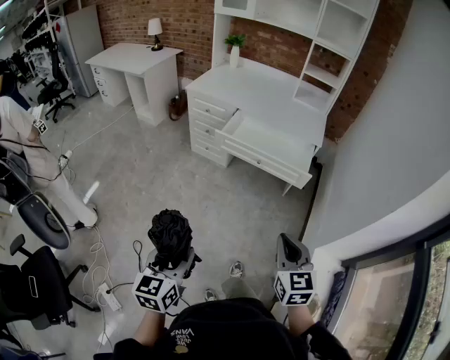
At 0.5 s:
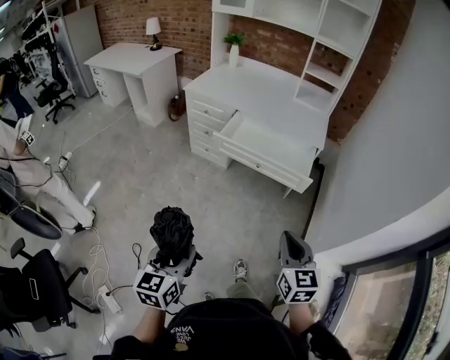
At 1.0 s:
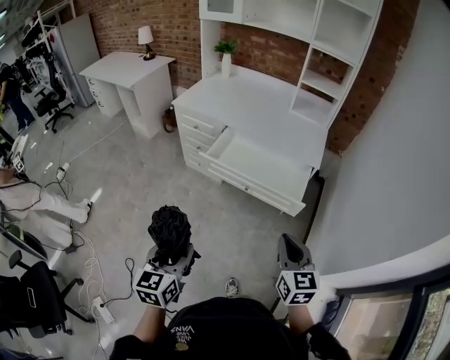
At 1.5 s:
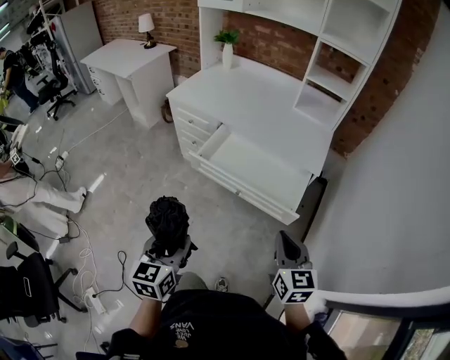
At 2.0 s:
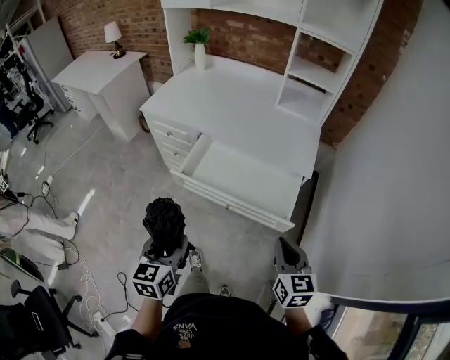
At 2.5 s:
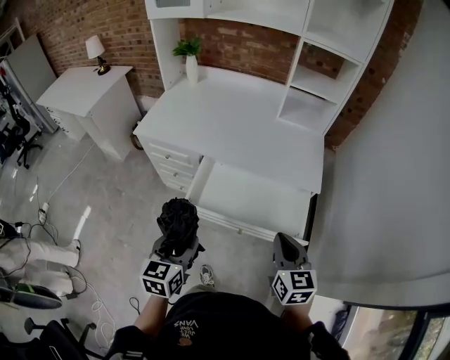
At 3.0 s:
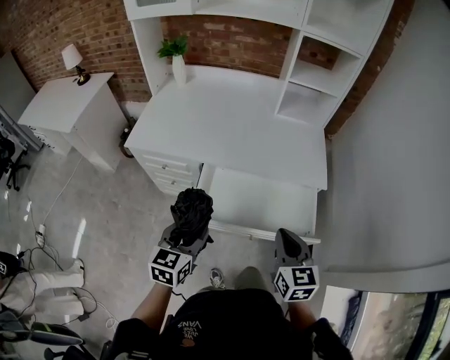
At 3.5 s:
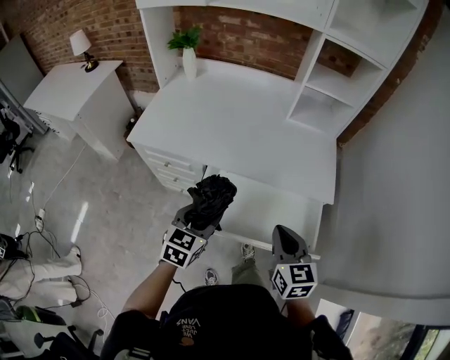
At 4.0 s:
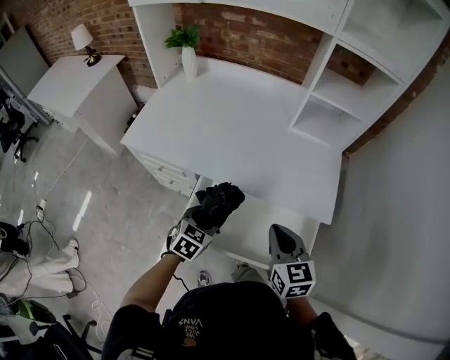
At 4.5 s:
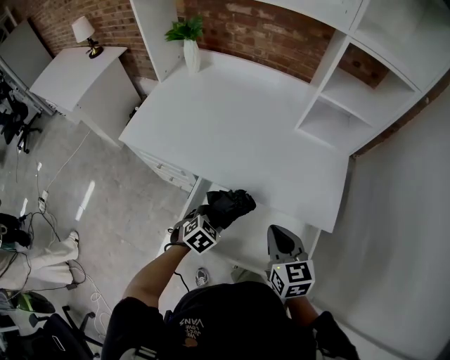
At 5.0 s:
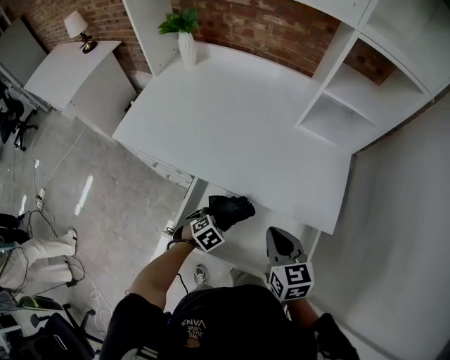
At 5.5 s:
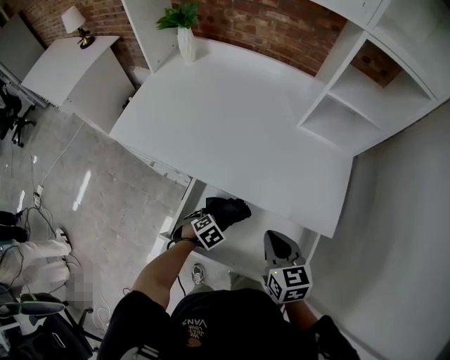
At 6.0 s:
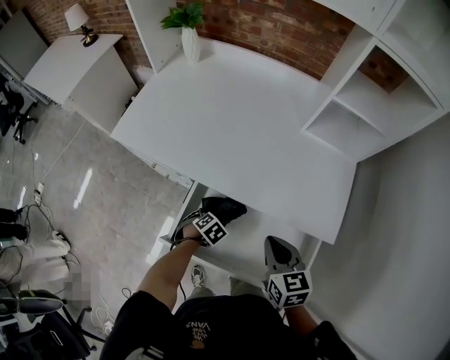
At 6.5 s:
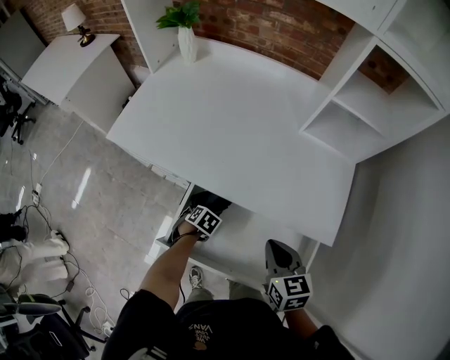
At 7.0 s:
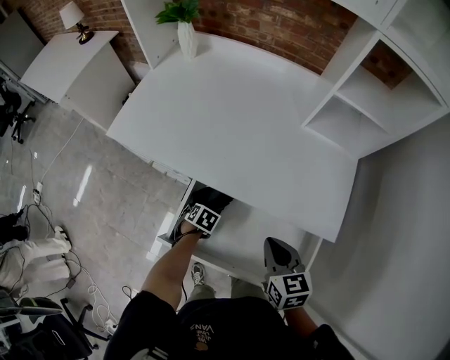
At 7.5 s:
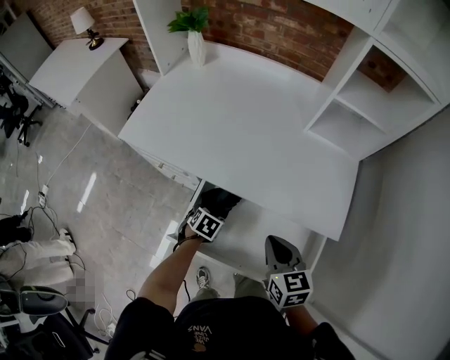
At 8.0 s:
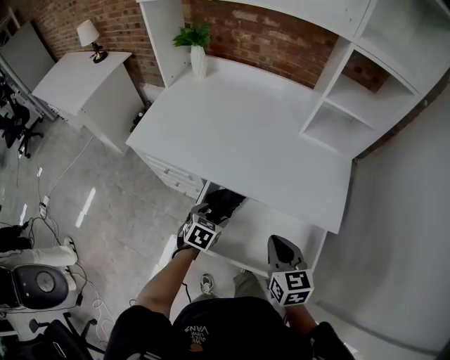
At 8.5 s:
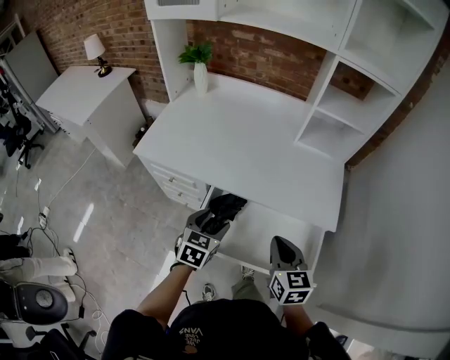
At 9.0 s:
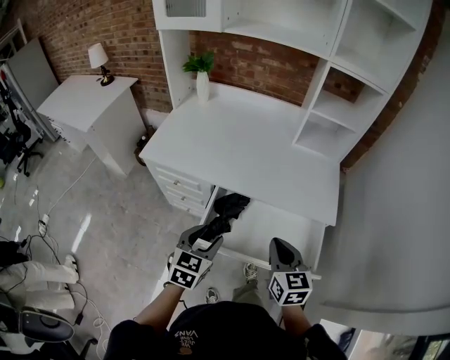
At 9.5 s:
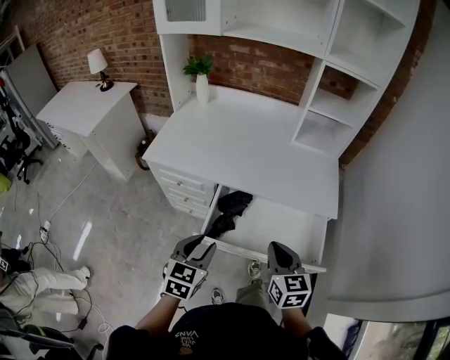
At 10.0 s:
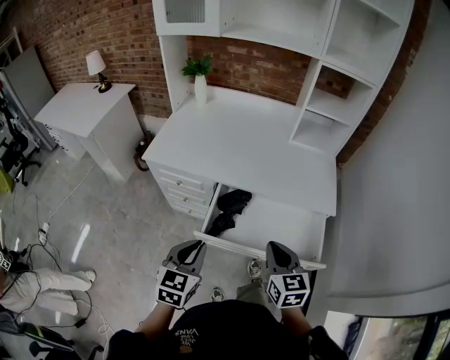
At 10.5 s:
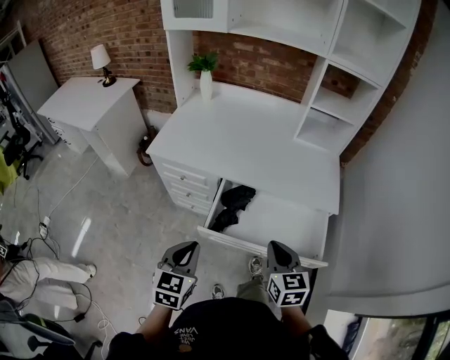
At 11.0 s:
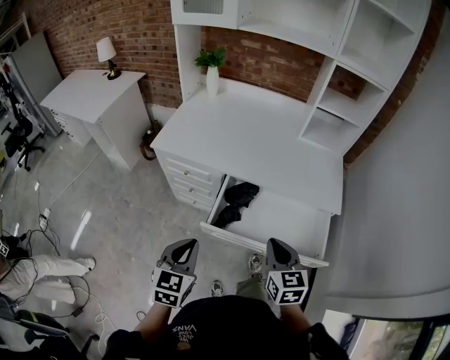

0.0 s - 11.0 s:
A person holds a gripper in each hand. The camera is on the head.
0.0 s - 2.0 s: The left gripper is displaced forward by about 40 cm. Meanwhile the right gripper shifts some 40 cm forward and to the right.
2.0 s - 3.5 s: The left gripper heads forward, covering approximately 30 cm, and swivels about 30 degrees; the right gripper shifts roughly 25 cm forward and to the left.
3.5 s - 5.5 s: The right gripper shifts by some 15 cm; the left gripper heads downward, covering approximately 25 cm, and tilts its fingers some 40 degrees downward.
5.5 s - 7.5 s: The left gripper shifts by roughly 5 cm, and changes its angle by some 30 degrees.
7.5 s - 9.0 s: The left gripper goes some 30 cm upward and backward, and points its fingers roughly 40 degrees further upward. The right gripper moves backward and upward, approximately 15 cm.
9.0 s - 11.0 s: The right gripper shifts roughly 10 cm backward and to the left; the left gripper travels backward and to the left by about 15 cm, and closes its fingers.

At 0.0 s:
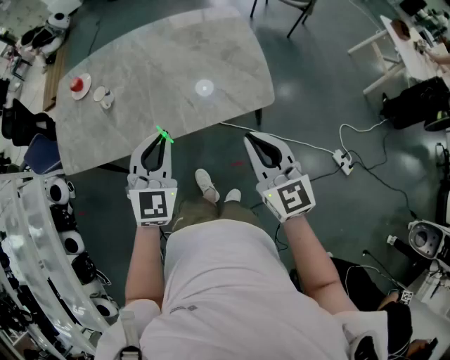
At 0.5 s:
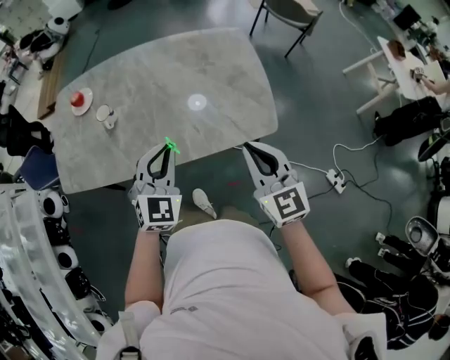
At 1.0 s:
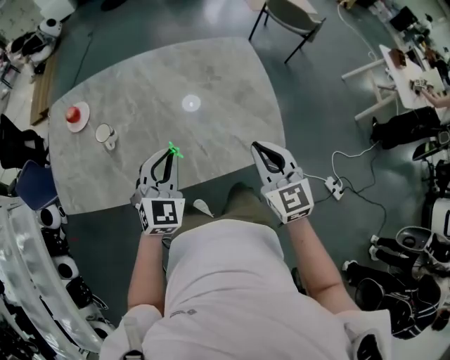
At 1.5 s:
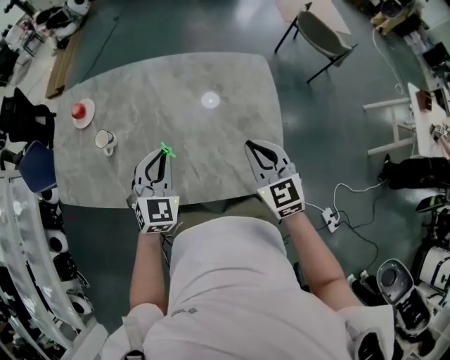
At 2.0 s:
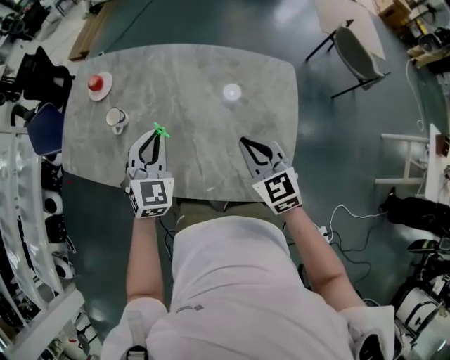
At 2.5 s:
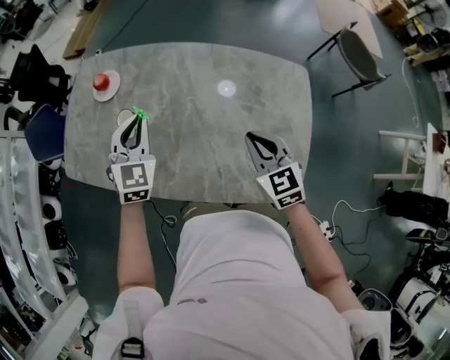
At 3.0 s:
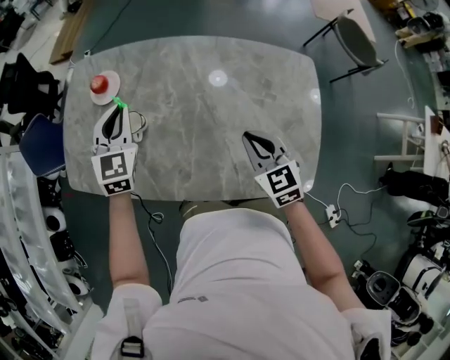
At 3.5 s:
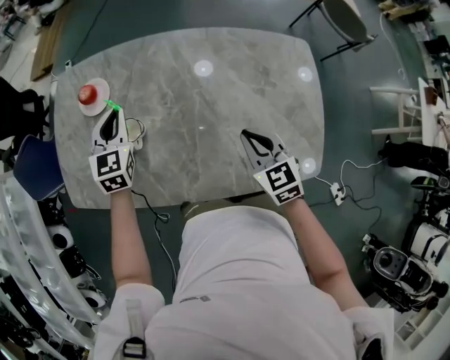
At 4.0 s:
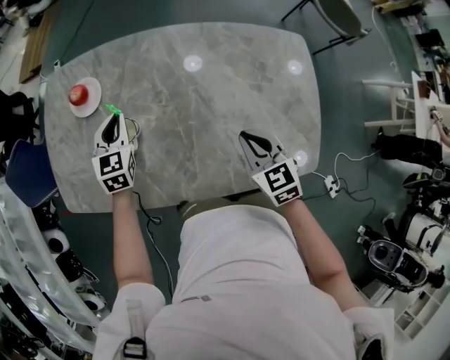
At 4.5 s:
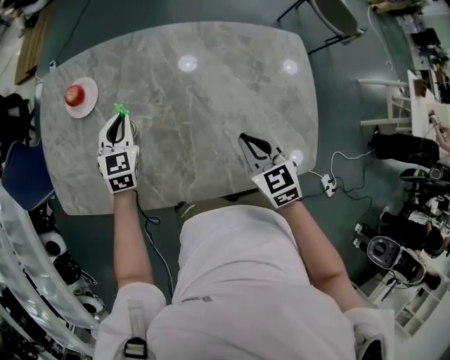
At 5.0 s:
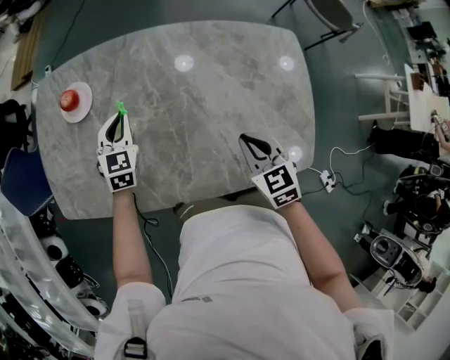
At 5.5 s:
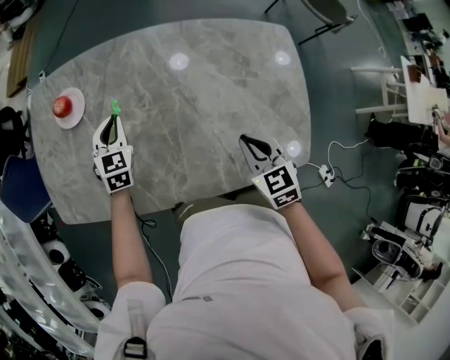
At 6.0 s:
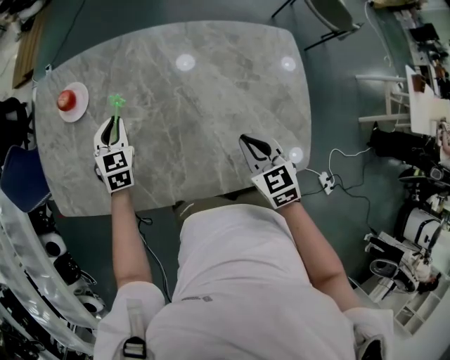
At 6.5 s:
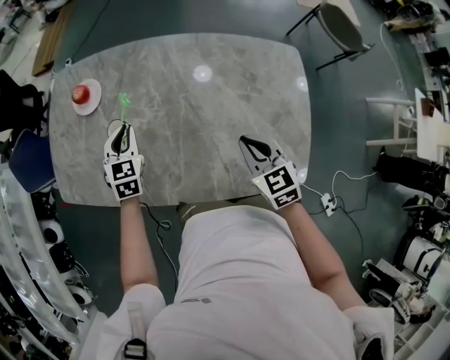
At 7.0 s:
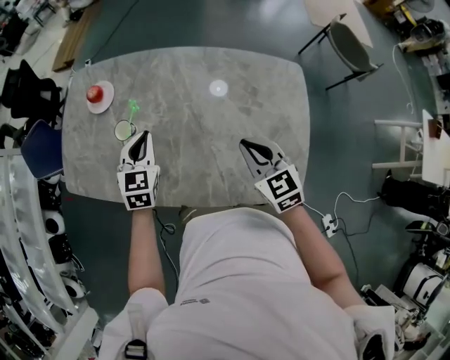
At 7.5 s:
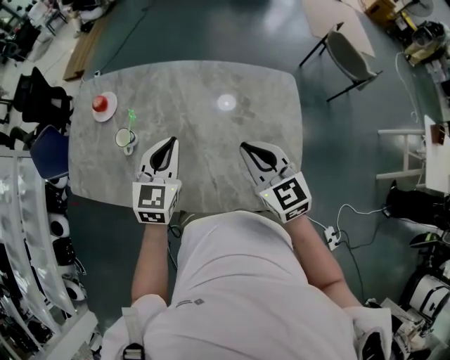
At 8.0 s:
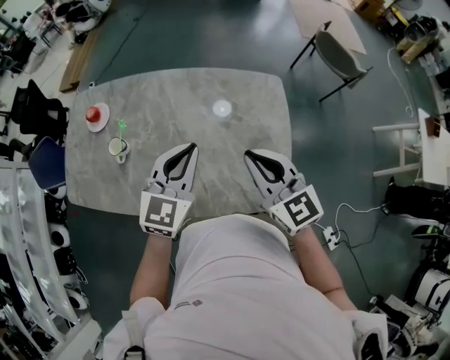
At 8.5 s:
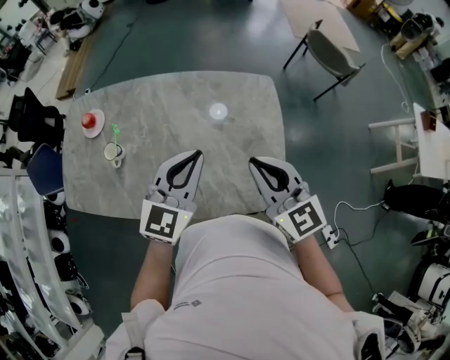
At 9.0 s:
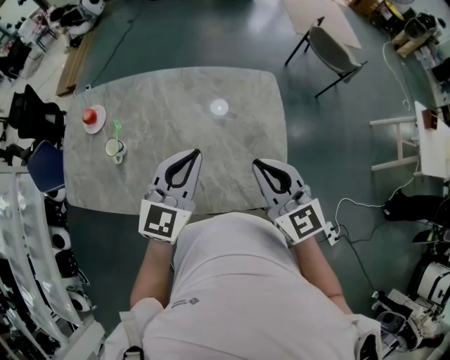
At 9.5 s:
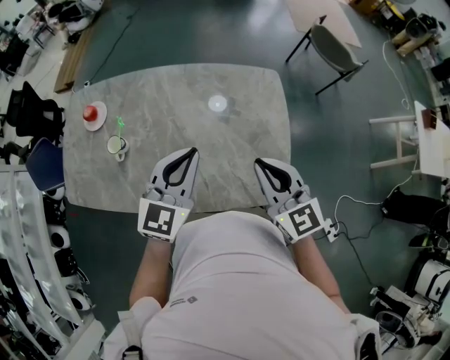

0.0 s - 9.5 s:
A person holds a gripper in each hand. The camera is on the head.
0.0 s - 2.0 s: The right gripper ends up some 35 cm from where it was, and changes its angle by about 30 degrees, while the left gripper moves some 30 cm, and changes its angle by about 30 degrees.
2.0 s - 4.0 s: The left gripper travels to the left, forward and downward by some 35 cm, and swivels some 20 degrees. The right gripper is displaced to the left, downward and forward by about 20 cm, and swivels approximately 20 degrees.
4.0 s - 5.5 s: The grippers stay close to where they were, moving slightly.
5.5 s - 7.5 s: The left gripper shifts approximately 30 cm to the right, upward and backward, while the right gripper heads upward and to the right, covering roughly 15 cm, and changes its angle by approximately 30 degrees.
7.5 s - 9.5 s: The right gripper shifts roughly 10 cm to the right and backward. The left gripper goes roughly 10 cm to the right and upward.

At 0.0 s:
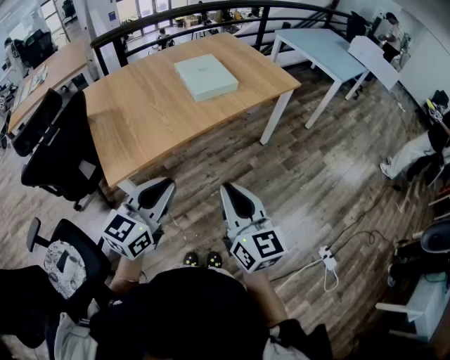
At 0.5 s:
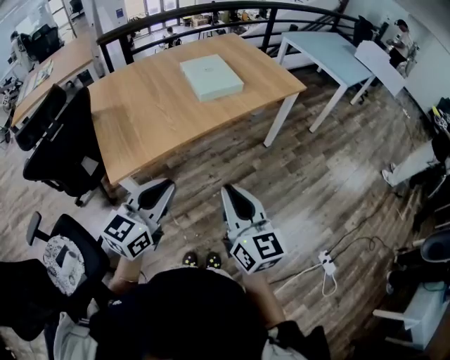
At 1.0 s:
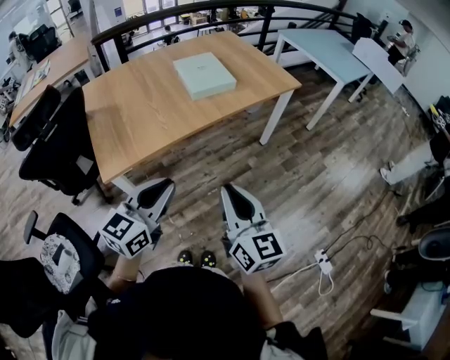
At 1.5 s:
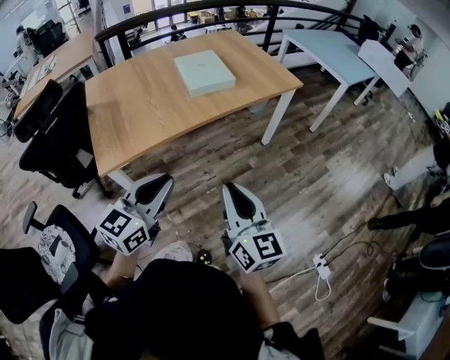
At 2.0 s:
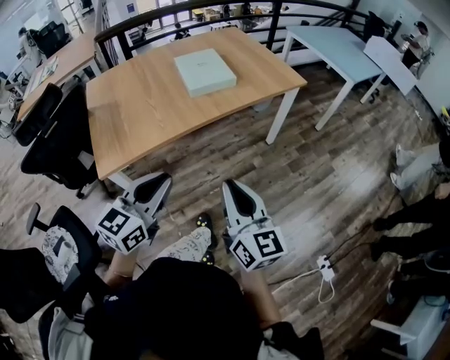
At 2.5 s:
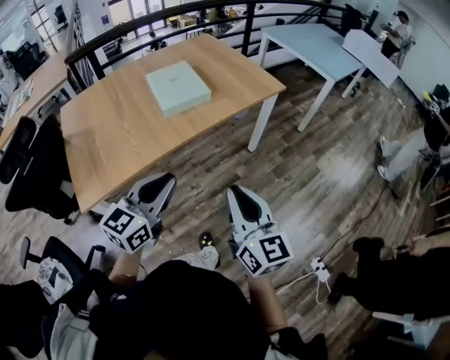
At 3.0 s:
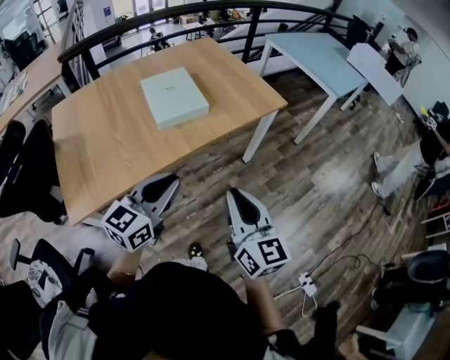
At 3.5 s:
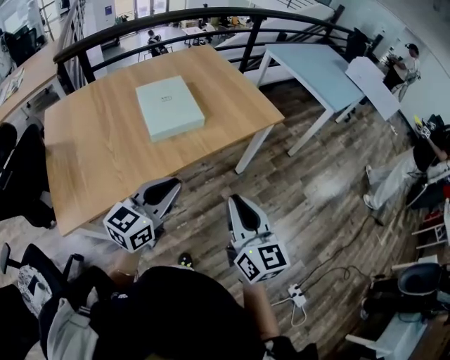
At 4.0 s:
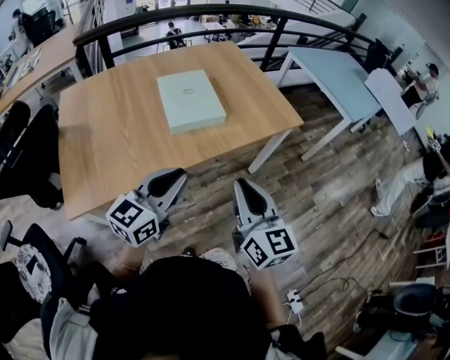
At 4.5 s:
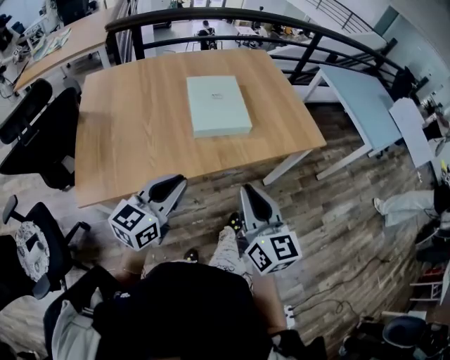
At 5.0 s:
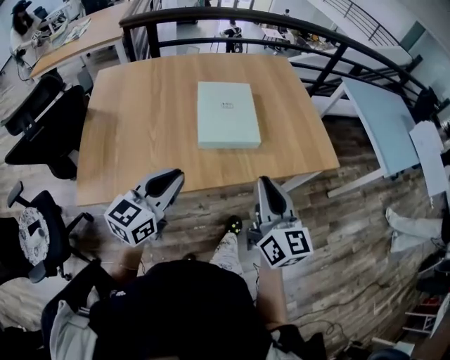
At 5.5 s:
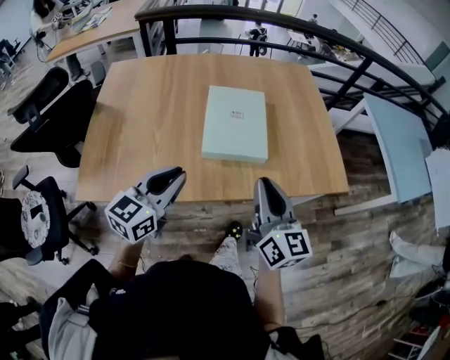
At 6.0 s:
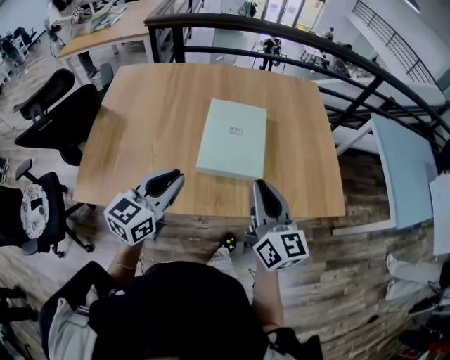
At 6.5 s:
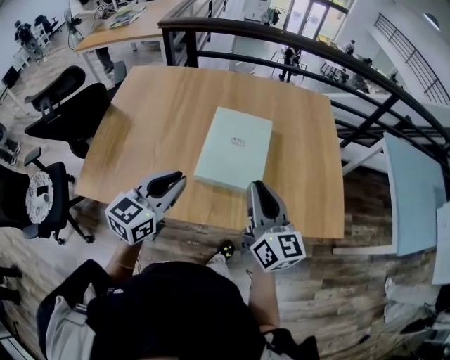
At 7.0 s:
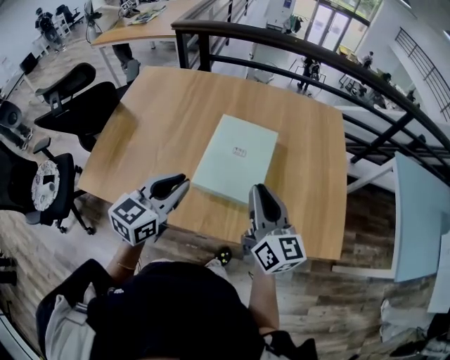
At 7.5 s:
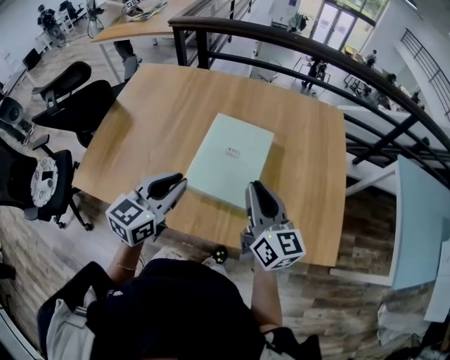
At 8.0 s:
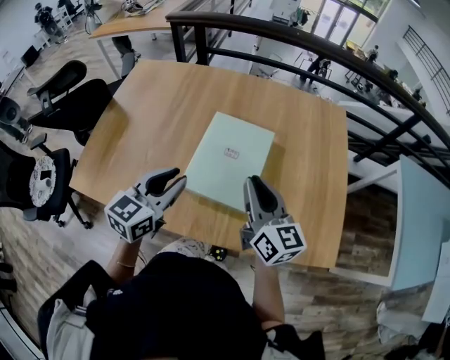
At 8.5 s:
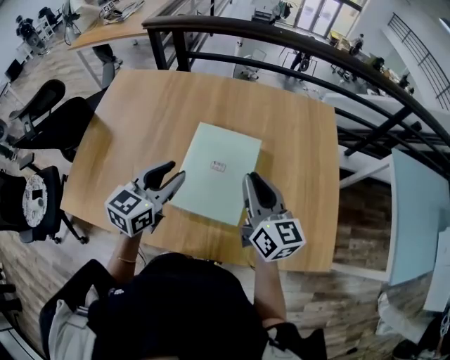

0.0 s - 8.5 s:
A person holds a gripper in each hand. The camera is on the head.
0.0 s - 2.0 s: The two grippers go about 10 cm to the right.
2.0 s - 4.0 s: Both grippers move forward, some 30 cm.
4.0 s - 6.5 s: The left gripper changes place by about 25 cm, and swivels roughly 30 degrees, while the right gripper ends up some 35 cm from where it was, and swivels approximately 30 degrees.
6.5 s - 8.5 s: The two grippers go some 15 cm forward. The left gripper opens its fingers.
